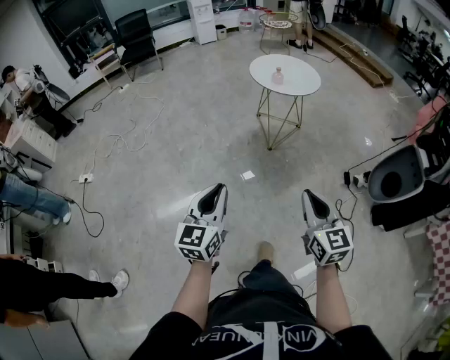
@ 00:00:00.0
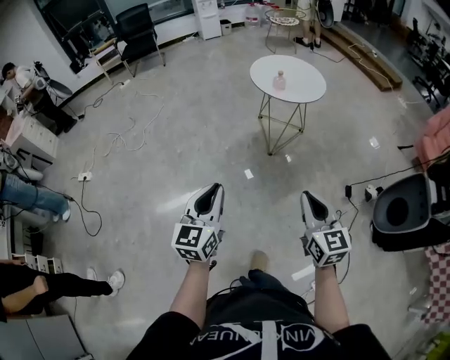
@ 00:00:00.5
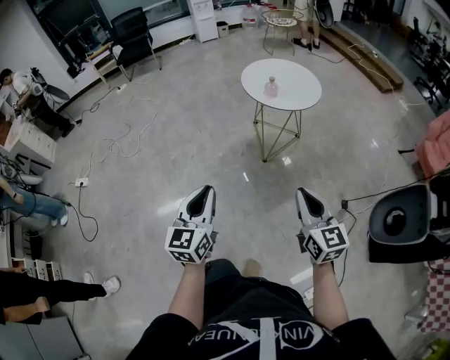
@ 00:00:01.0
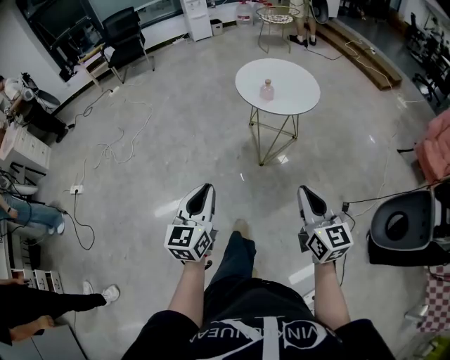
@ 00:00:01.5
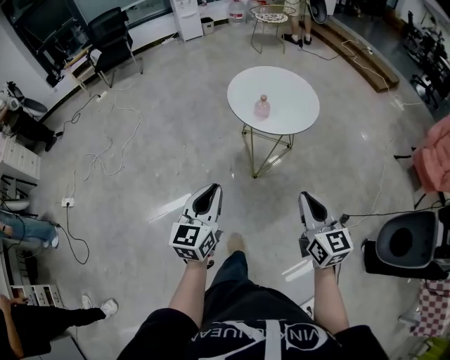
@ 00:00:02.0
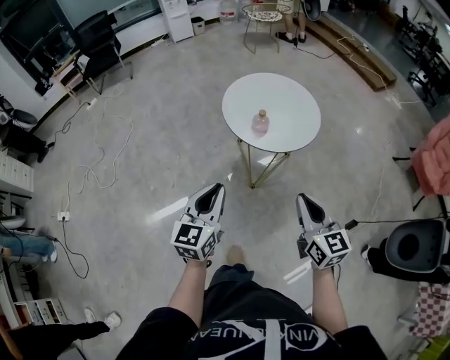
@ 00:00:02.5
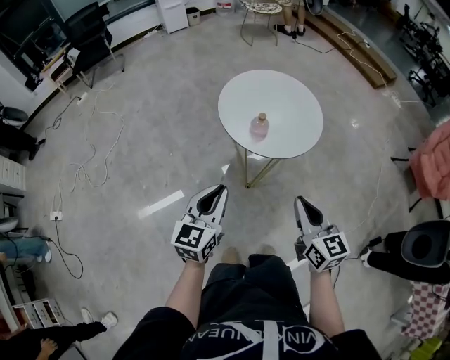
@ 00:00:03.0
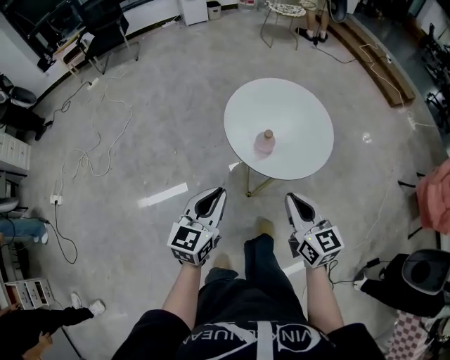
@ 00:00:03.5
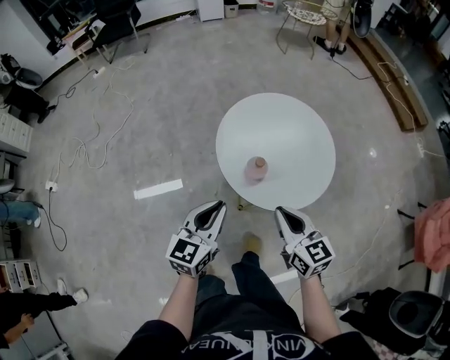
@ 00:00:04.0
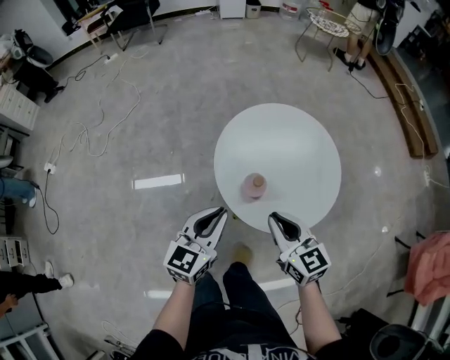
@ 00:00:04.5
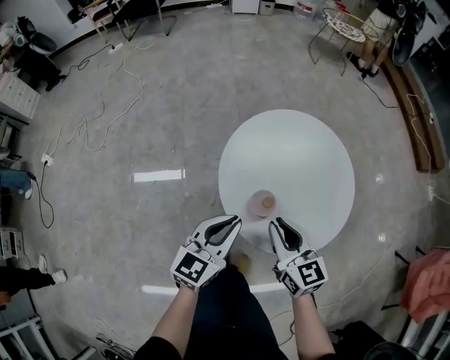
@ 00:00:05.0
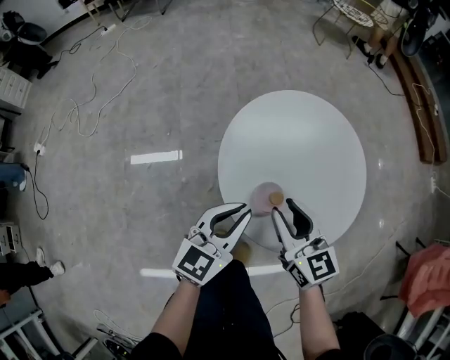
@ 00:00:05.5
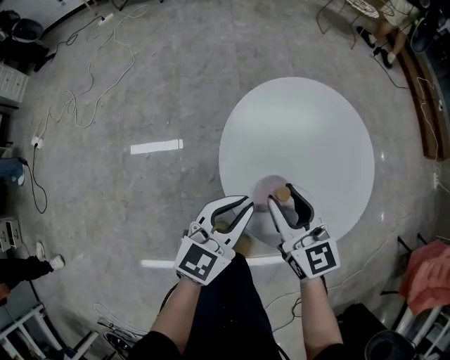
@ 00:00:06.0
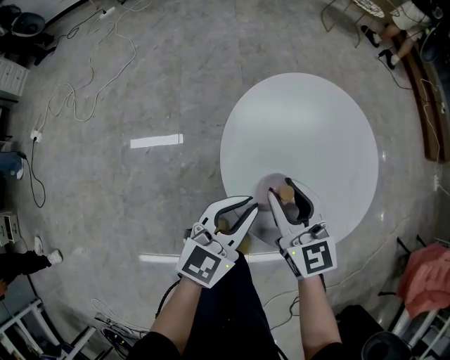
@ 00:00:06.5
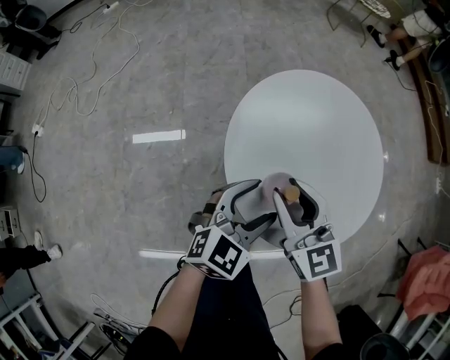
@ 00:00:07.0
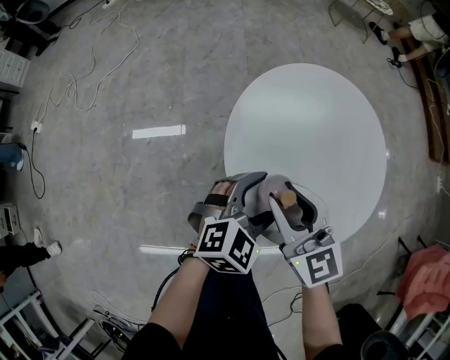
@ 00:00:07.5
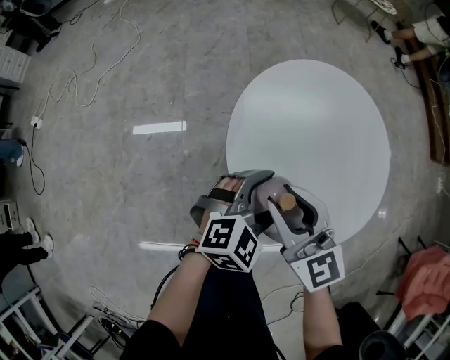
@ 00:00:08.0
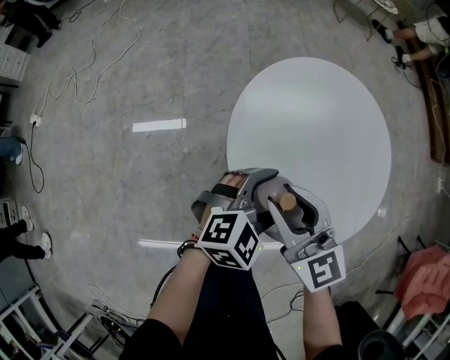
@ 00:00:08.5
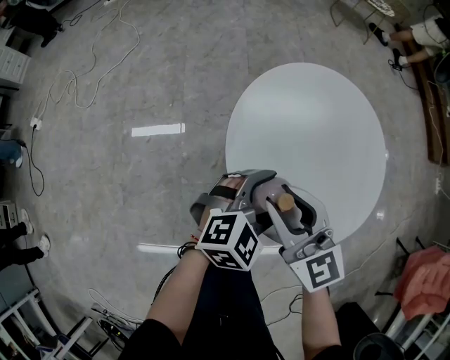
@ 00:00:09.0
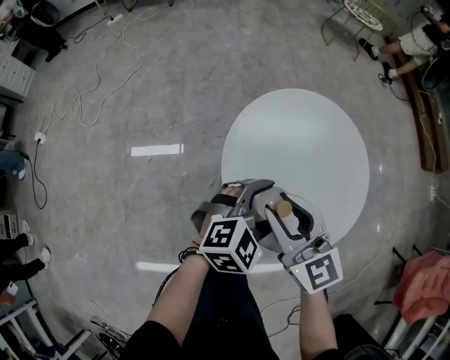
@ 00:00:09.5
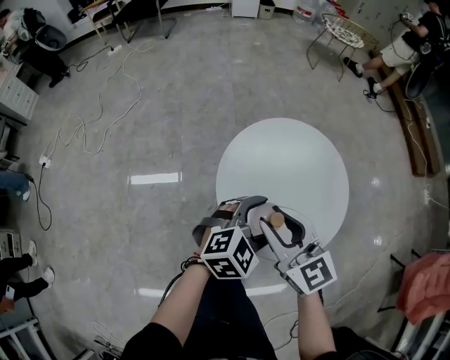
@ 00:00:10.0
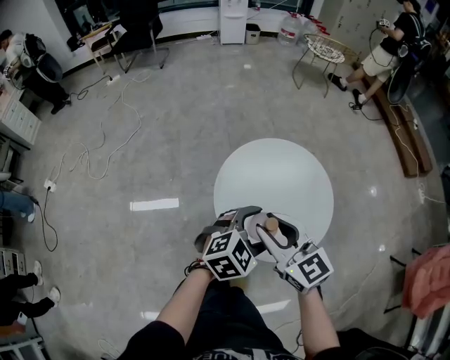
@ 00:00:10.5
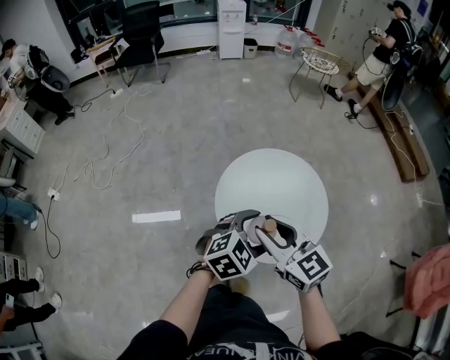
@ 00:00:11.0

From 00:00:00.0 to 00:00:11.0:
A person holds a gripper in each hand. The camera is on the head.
From 00:00:00.0 to 00:00:02.0: The grippers both shift forward by approximately 35 cm.
From 00:00:02.0 to 00:00:03.5: The two grippers go about 25 cm forward.
From 00:00:03.5 to 00:00:05.5: The left gripper travels forward, downward and to the right by approximately 25 cm. The right gripper travels forward and downward by roughly 25 cm, and opens its fingers.
From 00:00:05.5 to 00:00:07.5: The left gripper heads downward, covering approximately 5 cm, changes its angle by roughly 40 degrees, and opens.
From 00:00:07.5 to 00:00:09.0: There are only small adjustments of the grippers.
From 00:00:09.0 to 00:00:11.0: Both grippers travel together upward, some 20 cm.

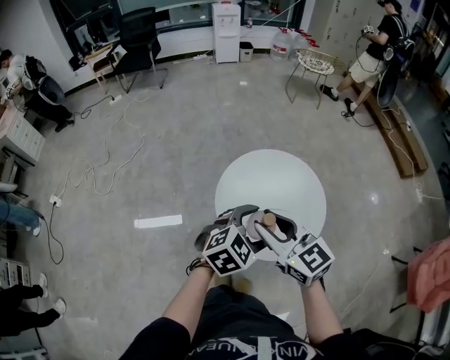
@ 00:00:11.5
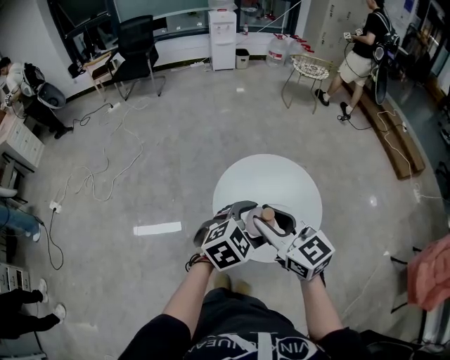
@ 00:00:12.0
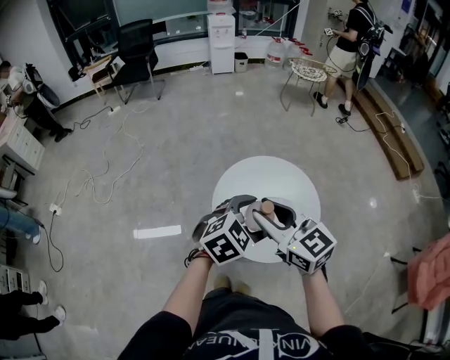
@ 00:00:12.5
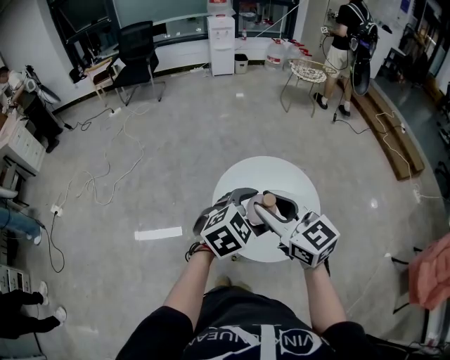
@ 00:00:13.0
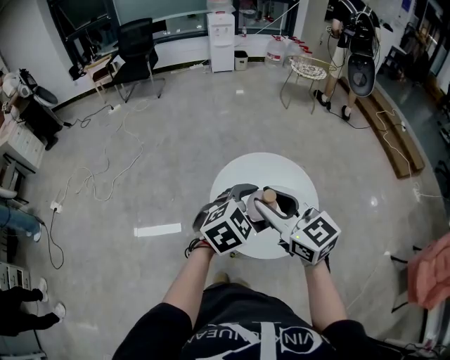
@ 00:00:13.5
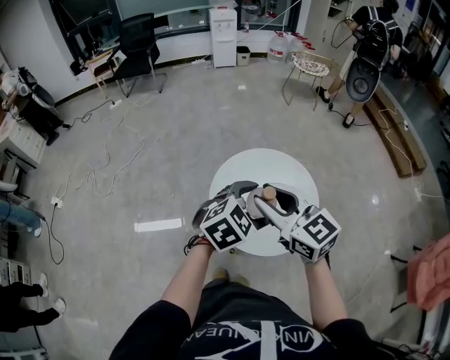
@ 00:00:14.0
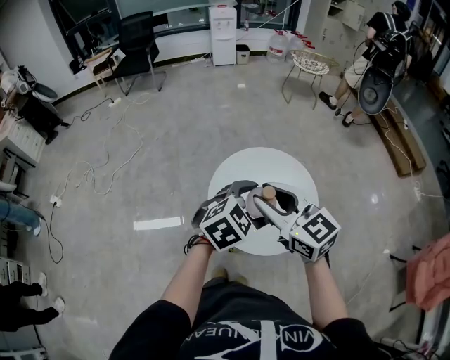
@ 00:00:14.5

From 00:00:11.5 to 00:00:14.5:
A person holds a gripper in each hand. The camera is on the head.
From 00:00:11.5 to 00:00:13.0: Both grippers travel together upward, approximately 5 cm.
From 00:00:13.0 to 00:00:14.5: There are only small adjustments of the grippers.

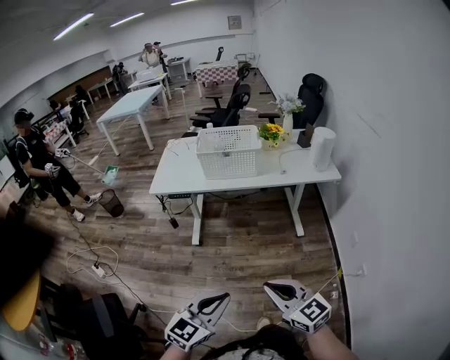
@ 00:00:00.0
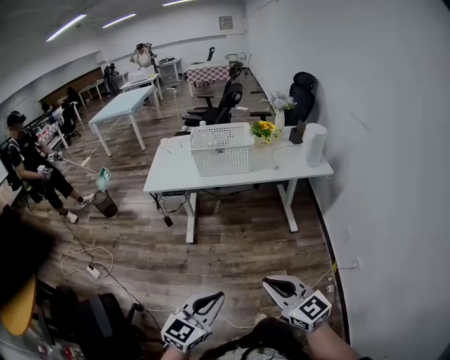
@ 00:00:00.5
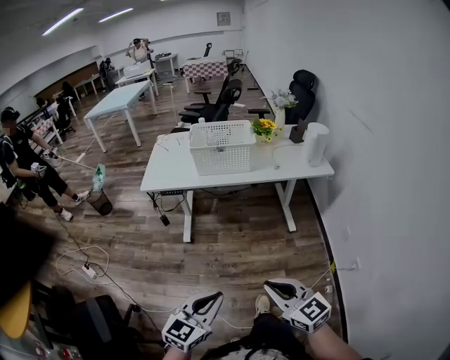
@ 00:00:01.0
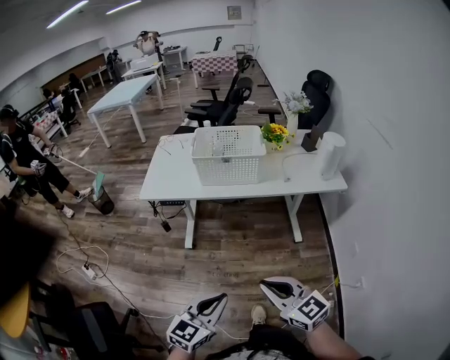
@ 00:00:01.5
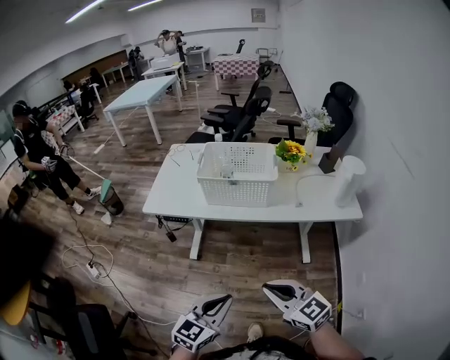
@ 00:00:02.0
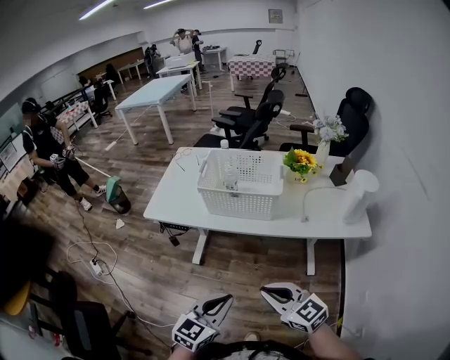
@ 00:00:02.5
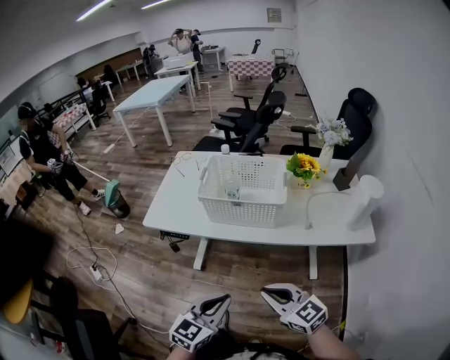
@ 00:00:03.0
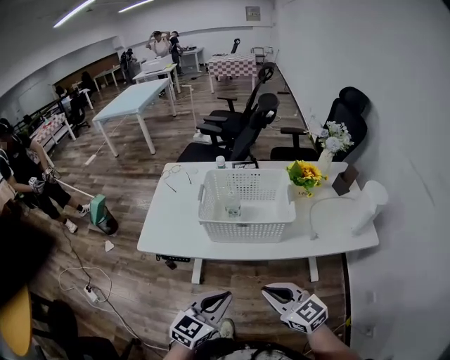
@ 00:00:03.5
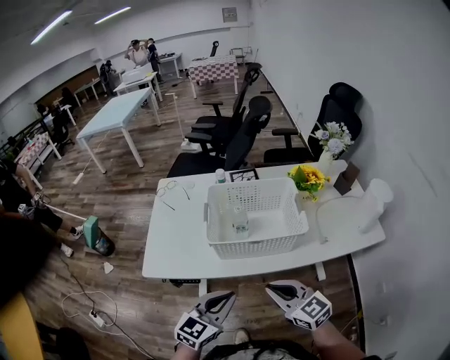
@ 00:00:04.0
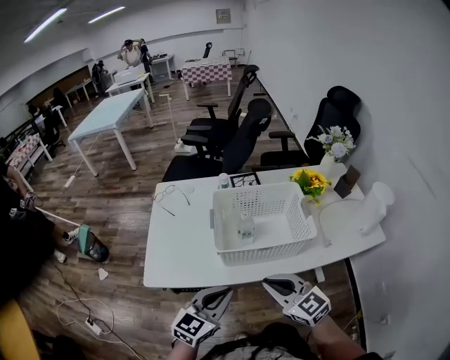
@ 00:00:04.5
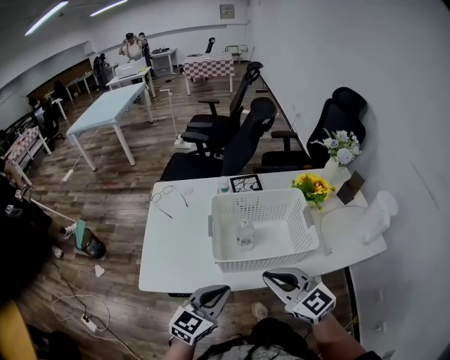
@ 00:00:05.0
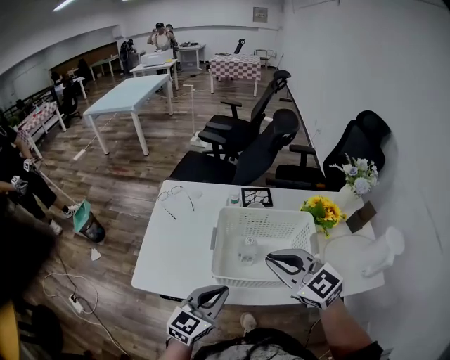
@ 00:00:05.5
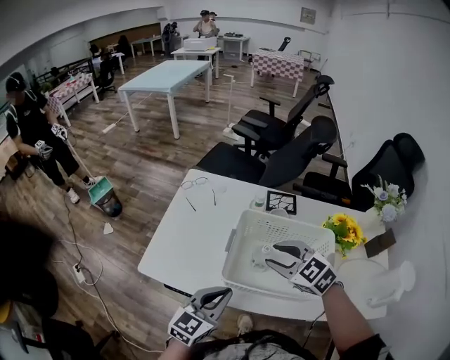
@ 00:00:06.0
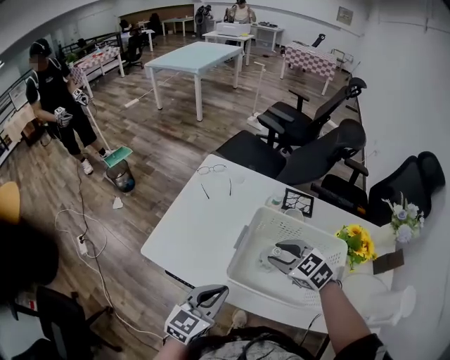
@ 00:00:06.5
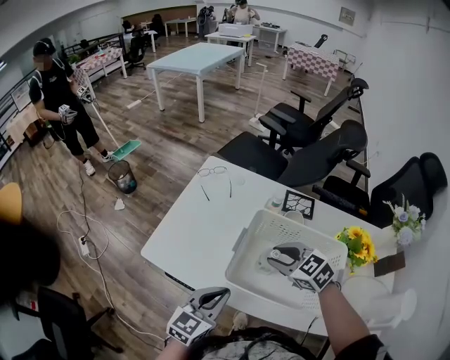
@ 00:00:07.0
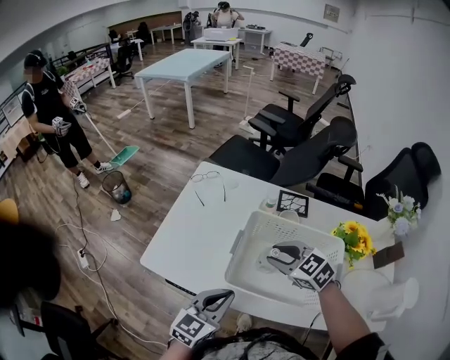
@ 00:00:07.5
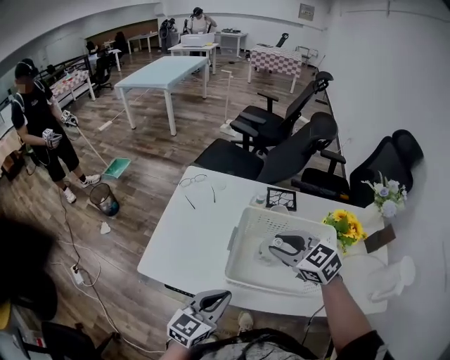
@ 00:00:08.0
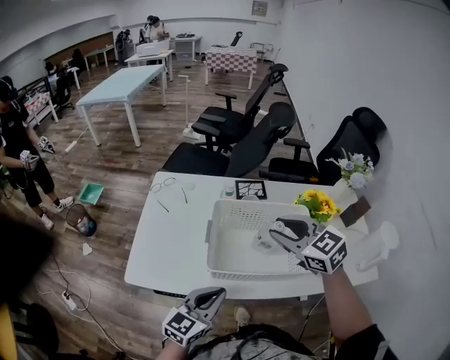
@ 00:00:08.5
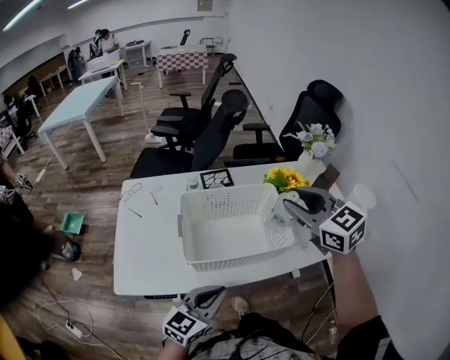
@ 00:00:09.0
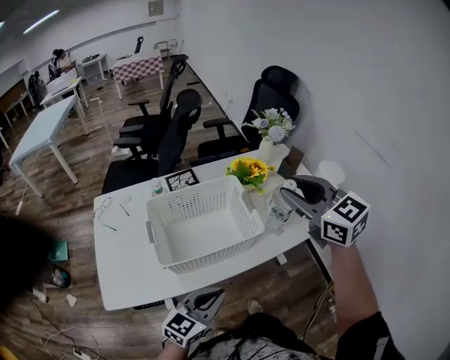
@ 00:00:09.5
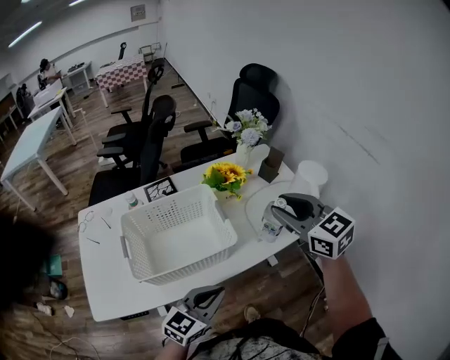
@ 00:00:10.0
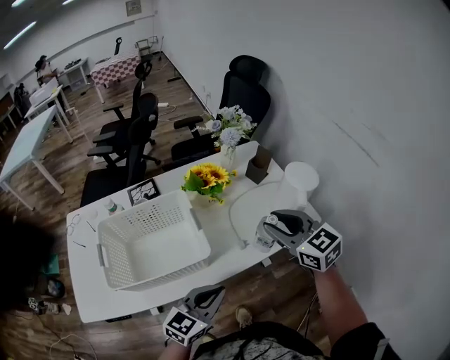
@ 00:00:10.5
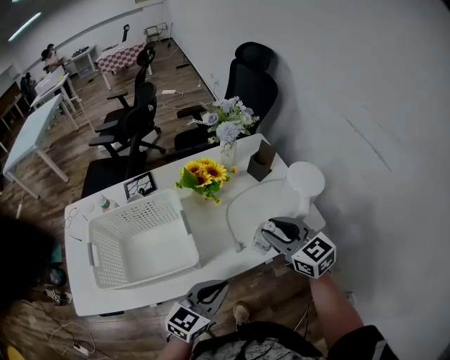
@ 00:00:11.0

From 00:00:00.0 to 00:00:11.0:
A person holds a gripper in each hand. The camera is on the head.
From 00:00:00.0 to 00:00:02.0: The two grippers go approximately 25 cm forward.
From 00:00:02.0 to 00:00:03.5: Both grippers travel together forward, about 20 cm.
From 00:00:03.5 to 00:00:05.5: The left gripper shifts roughly 20 cm forward. The right gripper travels forward and upward by about 30 cm.
From 00:00:05.5 to 00:00:07.5: The right gripper is displaced downward and forward by roughly 15 cm, turns by about 30 degrees, and opens its fingers.
From 00:00:07.5 to 00:00:09.0: The left gripper changes place by approximately 10 cm, and swivels approximately 30 degrees, while the right gripper heads upward, covering about 20 cm, and changes its angle by approximately 40 degrees.
From 00:00:09.0 to 00:00:11.0: The left gripper travels to the right and forward by roughly 30 cm, while the right gripper goes about 30 cm to the right and downward.

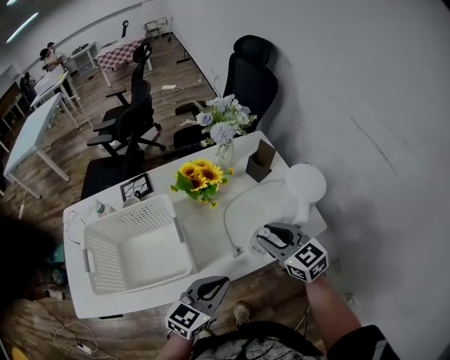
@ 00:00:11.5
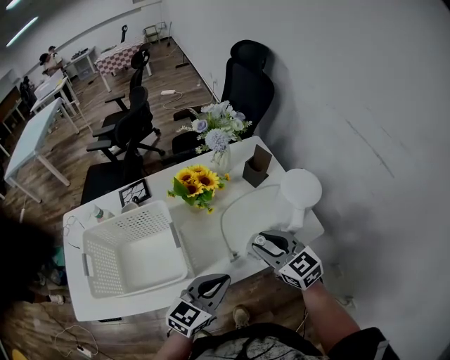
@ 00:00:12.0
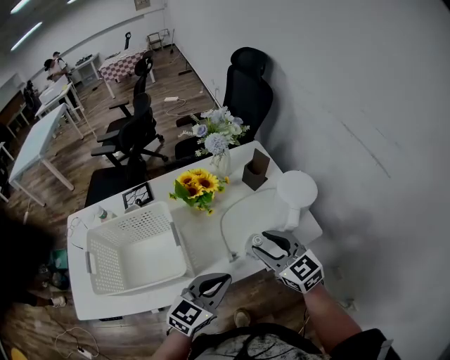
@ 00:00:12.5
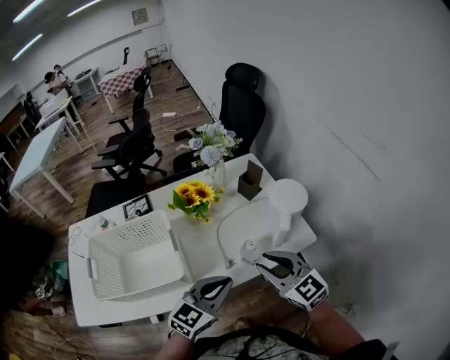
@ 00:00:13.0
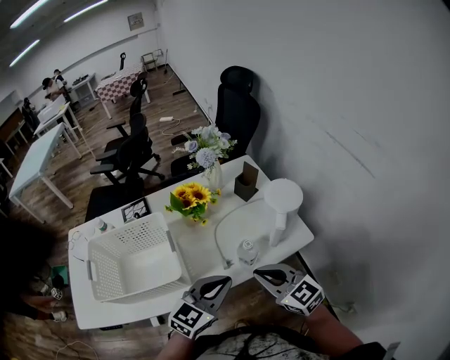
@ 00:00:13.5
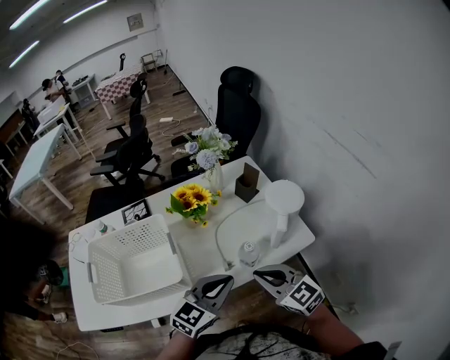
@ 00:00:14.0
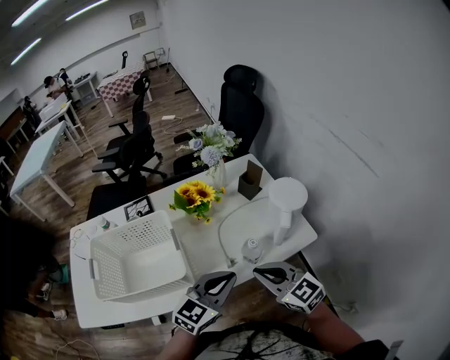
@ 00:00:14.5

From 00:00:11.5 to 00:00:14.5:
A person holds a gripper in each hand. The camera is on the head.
From 00:00:11.5 to 00:00:13.0: The right gripper shifts about 10 cm backward. The left gripper moves about 5 cm.
From 00:00:13.0 to 00:00:14.5: The right gripper closes its fingers.
